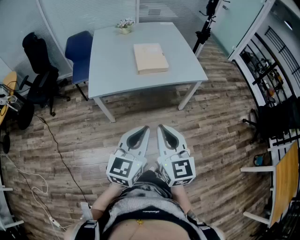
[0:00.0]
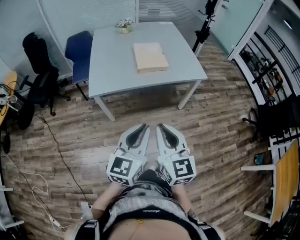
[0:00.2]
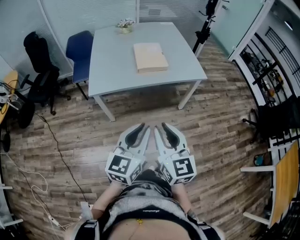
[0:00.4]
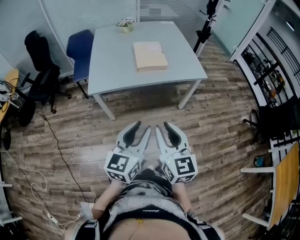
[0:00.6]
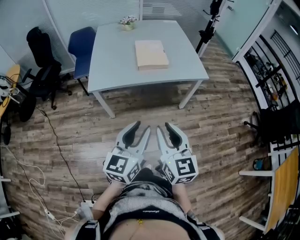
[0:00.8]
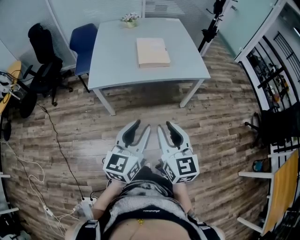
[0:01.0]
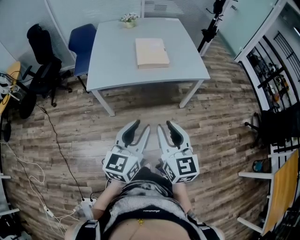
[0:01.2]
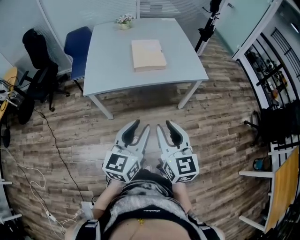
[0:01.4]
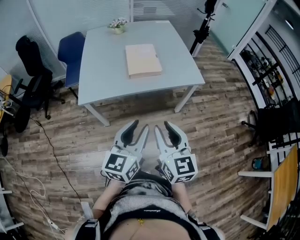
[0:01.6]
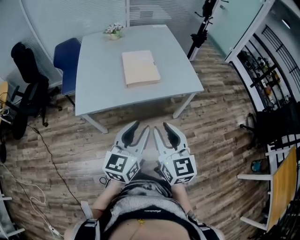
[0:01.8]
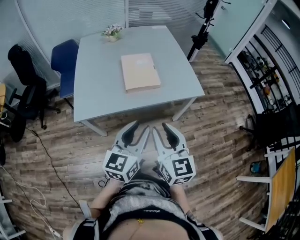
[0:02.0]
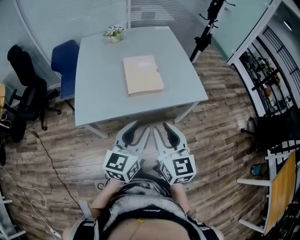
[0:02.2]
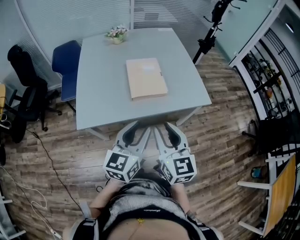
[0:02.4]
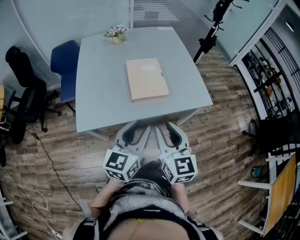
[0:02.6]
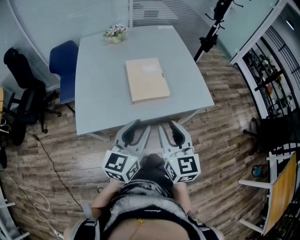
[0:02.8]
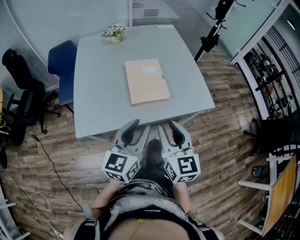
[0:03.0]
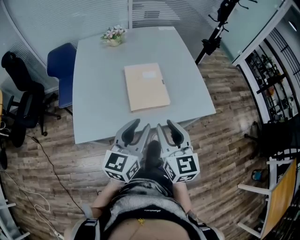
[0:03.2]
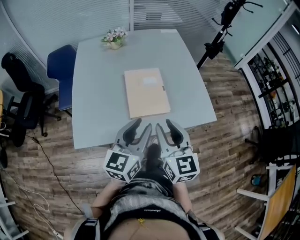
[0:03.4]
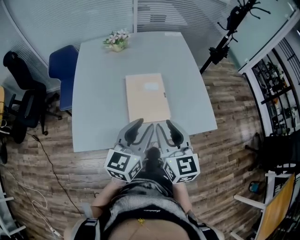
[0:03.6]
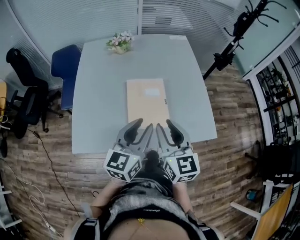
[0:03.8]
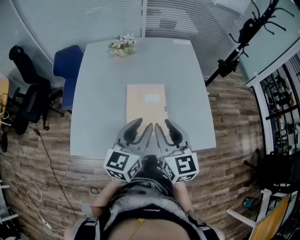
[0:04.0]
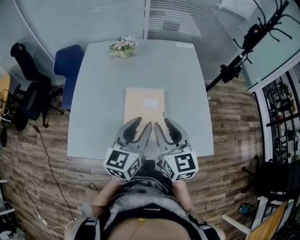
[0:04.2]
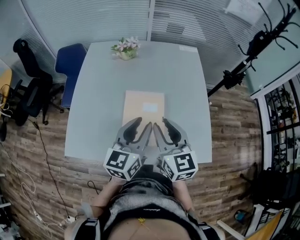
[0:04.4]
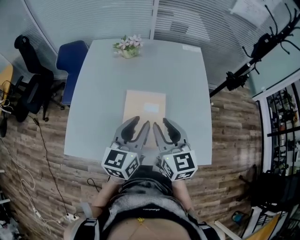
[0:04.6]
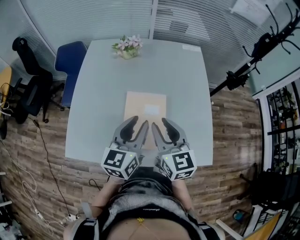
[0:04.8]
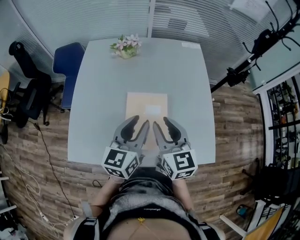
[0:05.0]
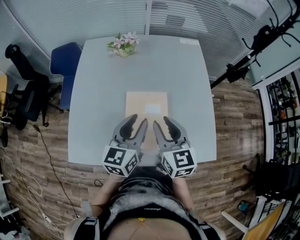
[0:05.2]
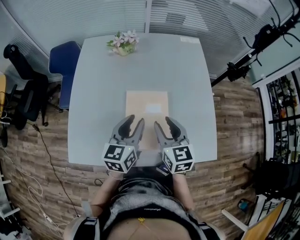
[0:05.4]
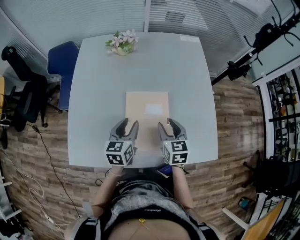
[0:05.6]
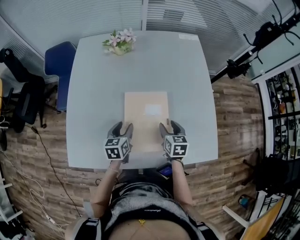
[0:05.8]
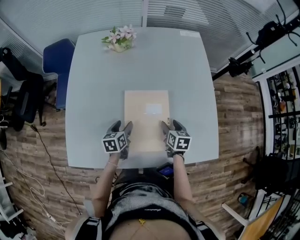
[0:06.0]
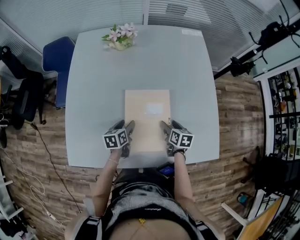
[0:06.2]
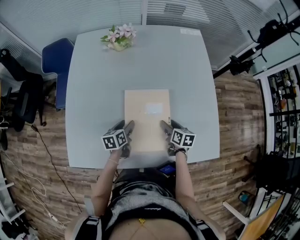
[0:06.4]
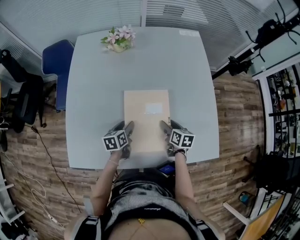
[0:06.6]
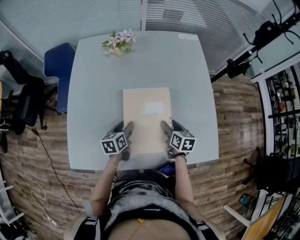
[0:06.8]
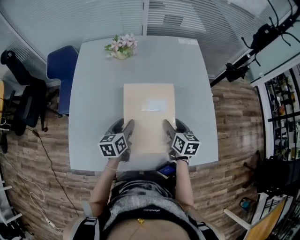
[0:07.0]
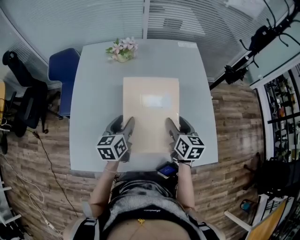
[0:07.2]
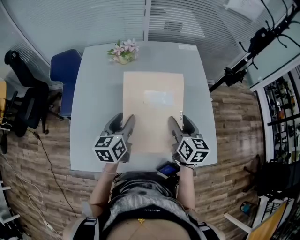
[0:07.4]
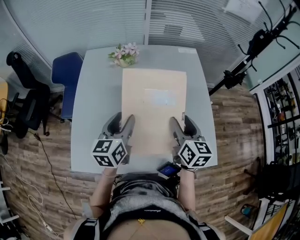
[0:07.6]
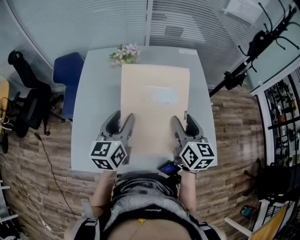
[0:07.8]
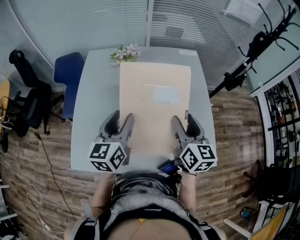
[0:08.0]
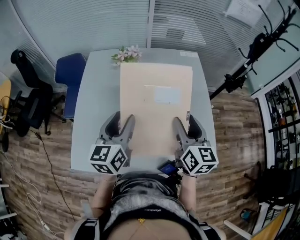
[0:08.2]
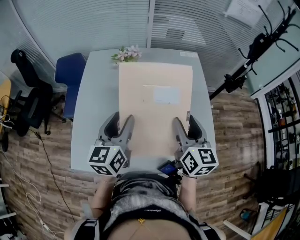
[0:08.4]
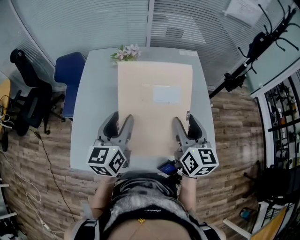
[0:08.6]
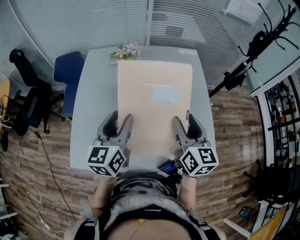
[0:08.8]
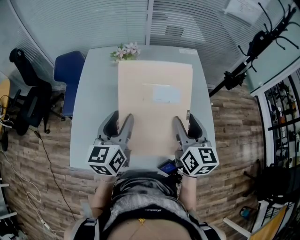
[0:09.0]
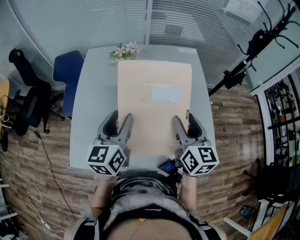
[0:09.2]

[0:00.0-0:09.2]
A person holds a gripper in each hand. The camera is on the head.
0:00.0 to 0:01.6: The right gripper heads forward and to the right, covering some 10 cm, and opens its fingers; the left gripper goes about 10 cm forward, and opens its fingers.
0:01.6 to 0:03.0: Both grippers travel together forward, approximately 25 cm.
0:03.0 to 0:04.6: Both grippers move forward, some 30 cm. The right gripper turns by approximately 20 degrees.
0:04.6 to 0:06.2: The grippers both shift downward by roughly 30 cm. The right gripper points its fingers approximately 30 degrees further downward, and opens up, while the left gripper tilts its fingers about 40 degrees downward, and opens.
0:06.2 to 0:07.6: The grippers both shift upward by about 30 cm. The left gripper changes its angle by about 30 degrees. The right gripper swivels some 30 degrees.
0:07.6 to 0:09.2: The grippers both shift upward by about 5 cm.

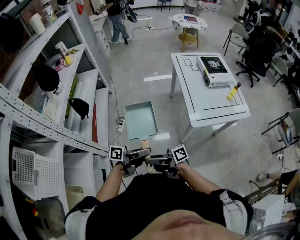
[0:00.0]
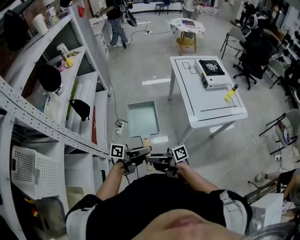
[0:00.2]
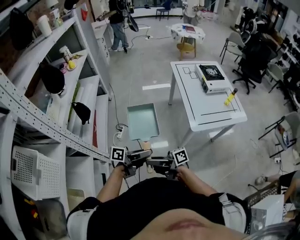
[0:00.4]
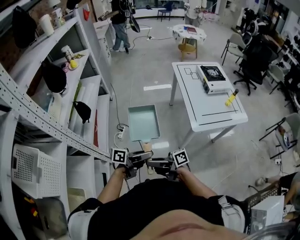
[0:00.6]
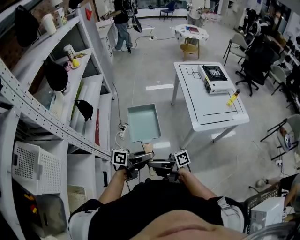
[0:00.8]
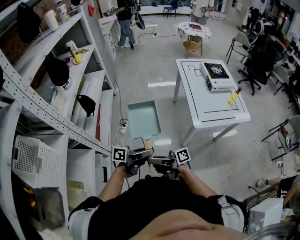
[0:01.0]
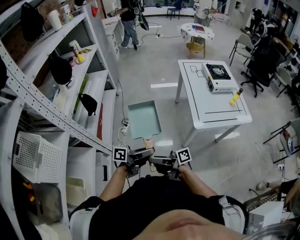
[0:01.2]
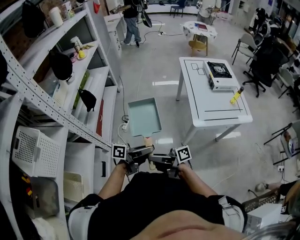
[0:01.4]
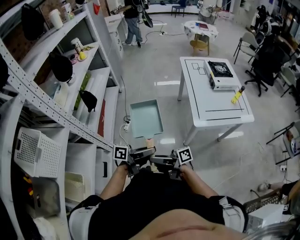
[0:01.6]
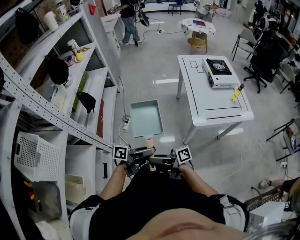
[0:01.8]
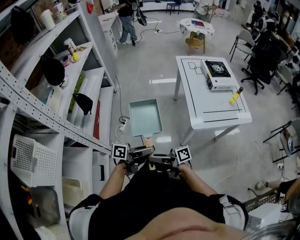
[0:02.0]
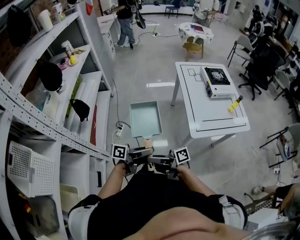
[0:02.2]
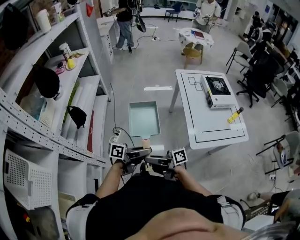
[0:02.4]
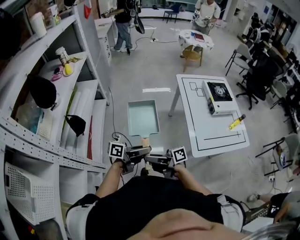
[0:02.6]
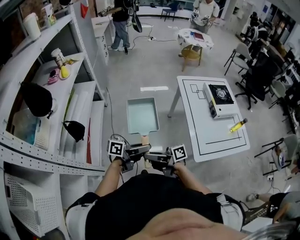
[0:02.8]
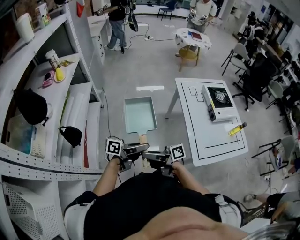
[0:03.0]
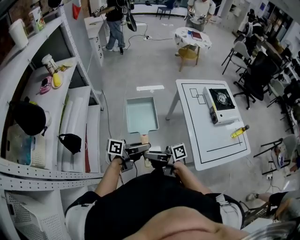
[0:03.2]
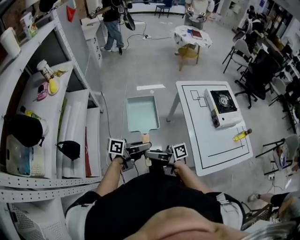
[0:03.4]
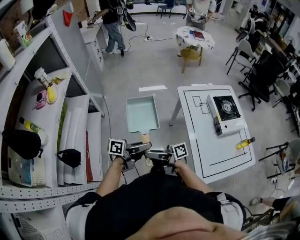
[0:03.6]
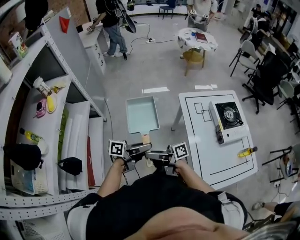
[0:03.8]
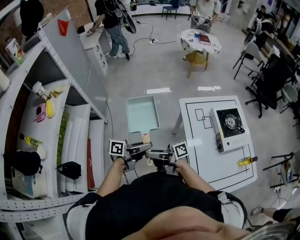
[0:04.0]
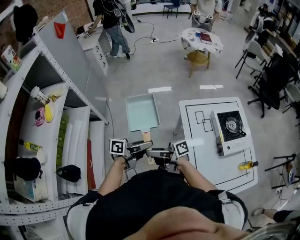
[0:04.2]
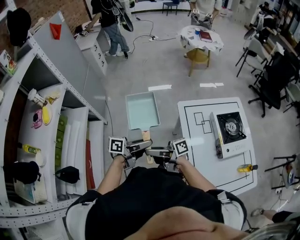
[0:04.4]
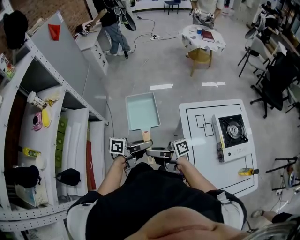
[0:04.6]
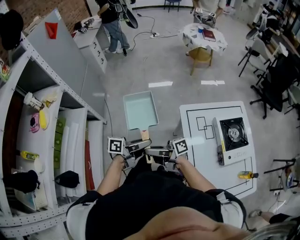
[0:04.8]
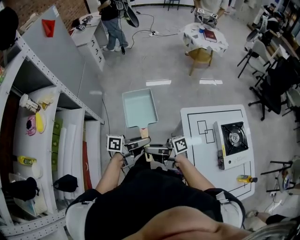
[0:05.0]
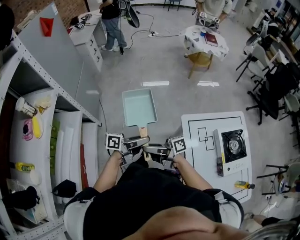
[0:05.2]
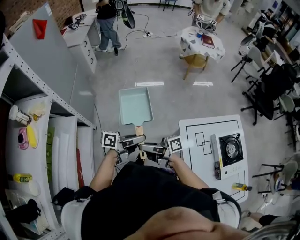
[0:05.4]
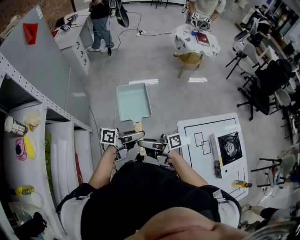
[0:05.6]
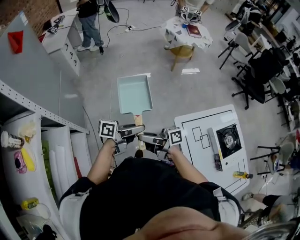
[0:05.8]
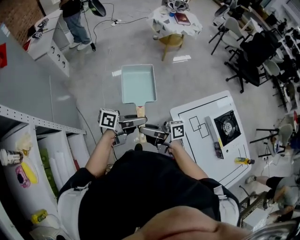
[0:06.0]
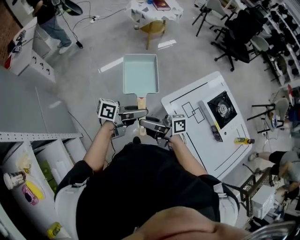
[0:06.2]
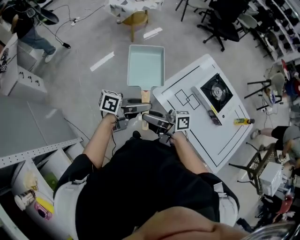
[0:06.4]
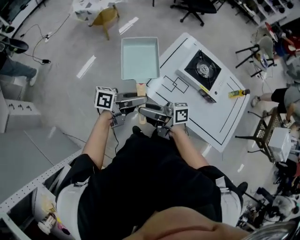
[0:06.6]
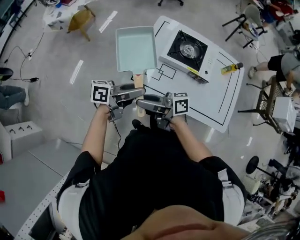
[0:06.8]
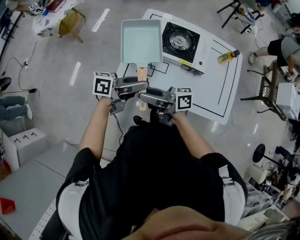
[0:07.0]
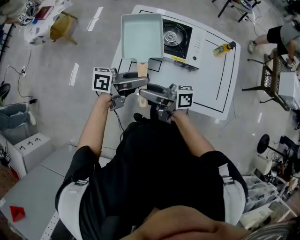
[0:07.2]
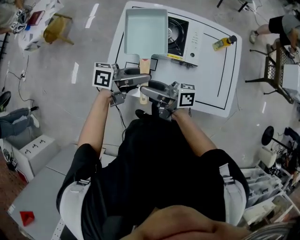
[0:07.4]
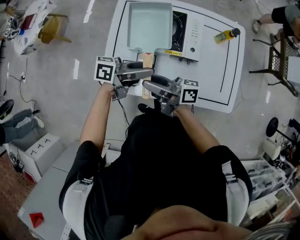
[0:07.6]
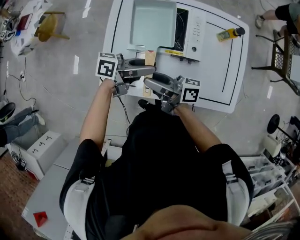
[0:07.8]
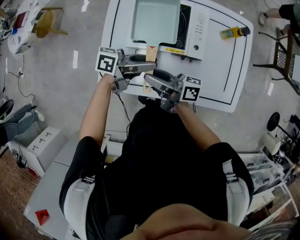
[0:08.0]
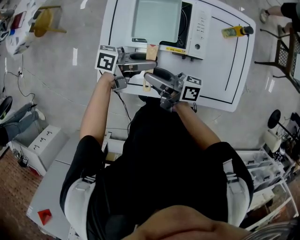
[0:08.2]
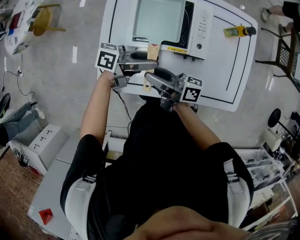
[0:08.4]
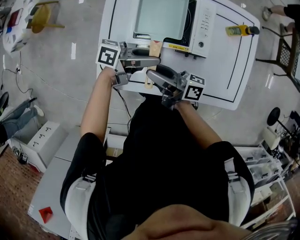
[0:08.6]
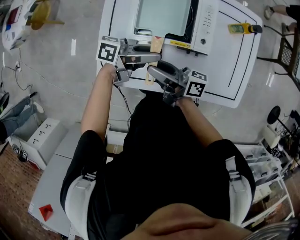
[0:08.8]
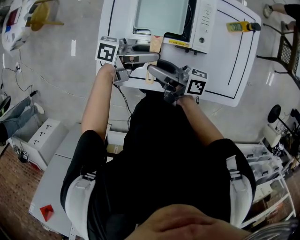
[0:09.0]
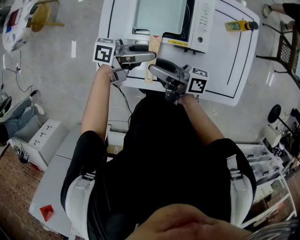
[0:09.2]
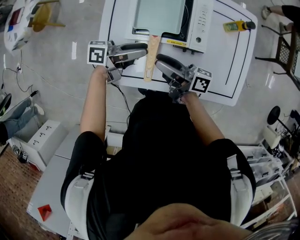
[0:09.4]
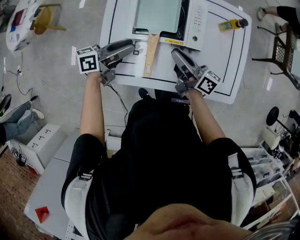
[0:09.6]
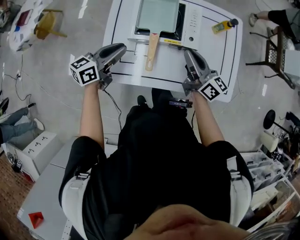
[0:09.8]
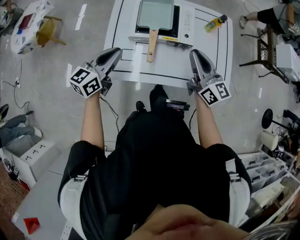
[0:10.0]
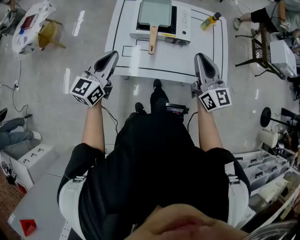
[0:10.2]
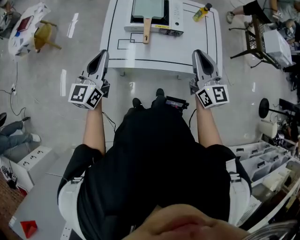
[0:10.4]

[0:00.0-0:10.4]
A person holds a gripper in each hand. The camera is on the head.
0:00.0 to 0:01.4: The left gripper shifts by about 5 cm. The right gripper ends up roughly 5 cm from where it was.
0:01.4 to 0:03.0: The right gripper ends up about 35 cm from where it was, while the left gripper ends up some 35 cm from where it was.
0:03.0 to 0:04.4: The right gripper shifts by about 35 cm, while the left gripper shifts by about 35 cm.
0:04.4 to 0:06.0: The left gripper moves roughly 30 cm, and turns by some 20 degrees. The right gripper changes place by approximately 30 cm, and rotates approximately 20 degrees.
0:06.0 to 0:07.4: Both grippers are carried roughly 40 cm. The right gripper changes its angle by some 60 degrees; the left gripper changes its angle by some 60 degrees.
0:07.4 to 0:09.0: Both grippers move downward, some 10 cm.
0:09.0 to 0:10.4: The left gripper shifts by roughly 30 cm, rotates about 80 degrees, and closes. Meanwhile the right gripper ends up approximately 30 cm from where it was, rotates around the line of its fingers by some 70 degrees, counterclockwise from behind, and closes its fingers.

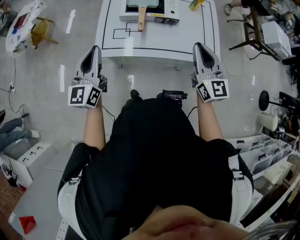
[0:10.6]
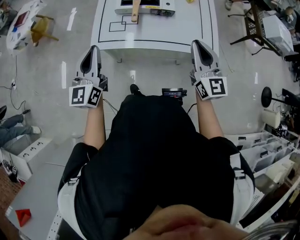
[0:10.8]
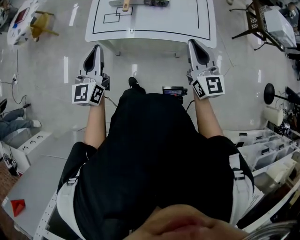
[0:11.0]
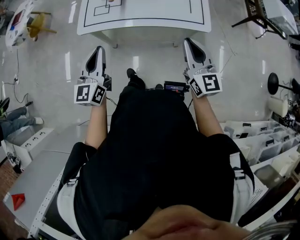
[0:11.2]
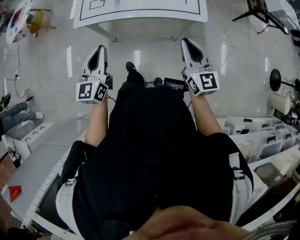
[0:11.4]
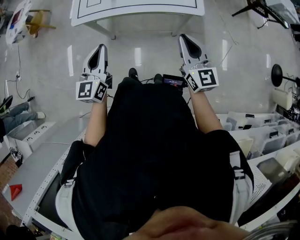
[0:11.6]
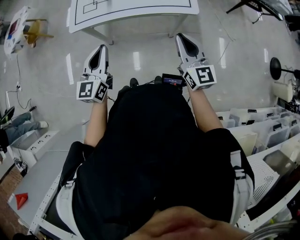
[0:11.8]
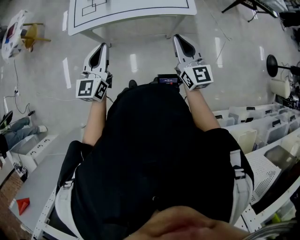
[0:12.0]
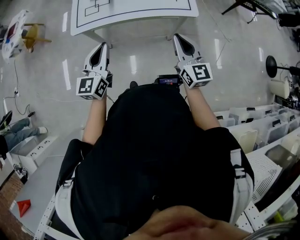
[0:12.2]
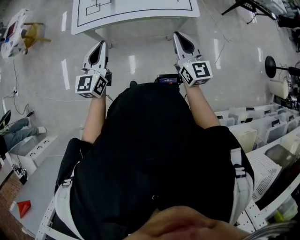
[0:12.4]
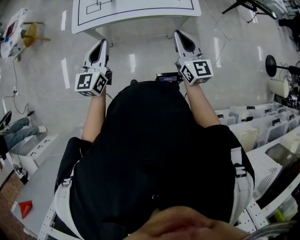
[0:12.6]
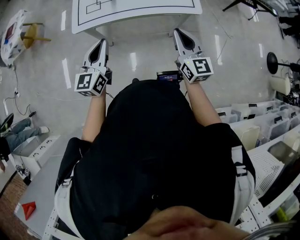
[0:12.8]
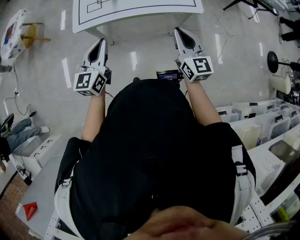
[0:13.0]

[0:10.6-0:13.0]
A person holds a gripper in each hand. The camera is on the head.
0:10.6 to 0:11.8: The left gripper shifts roughly 30 cm to the right and backward. Meanwhile the right gripper moves backward and to the right, approximately 25 cm.
0:11.8 to 0:13.0: Both grippers travel together to the left, some 5 cm.

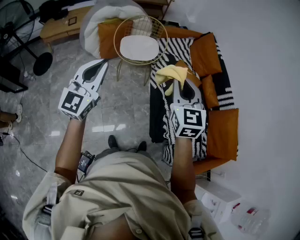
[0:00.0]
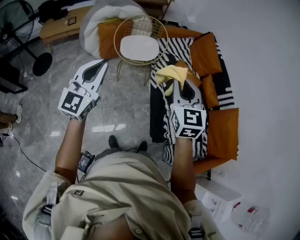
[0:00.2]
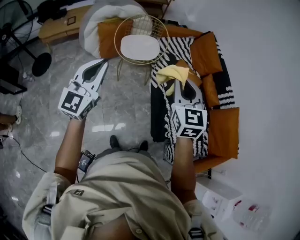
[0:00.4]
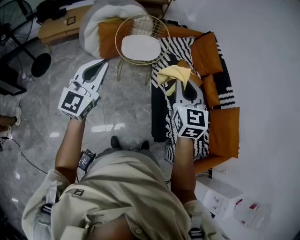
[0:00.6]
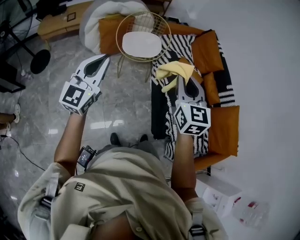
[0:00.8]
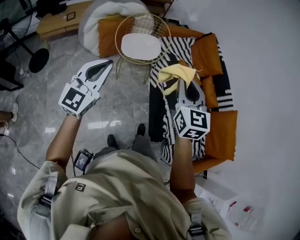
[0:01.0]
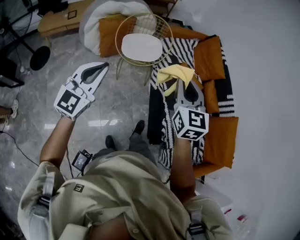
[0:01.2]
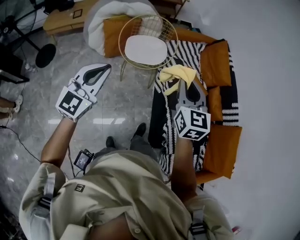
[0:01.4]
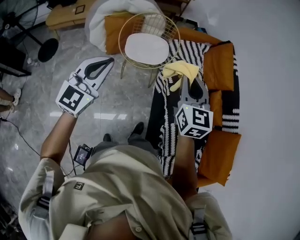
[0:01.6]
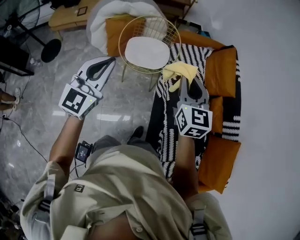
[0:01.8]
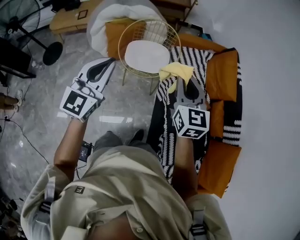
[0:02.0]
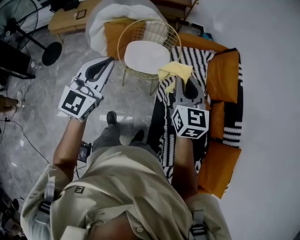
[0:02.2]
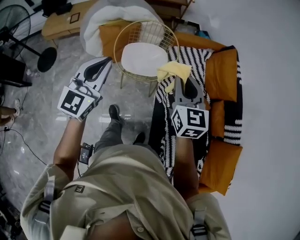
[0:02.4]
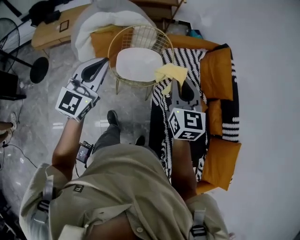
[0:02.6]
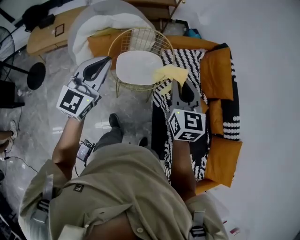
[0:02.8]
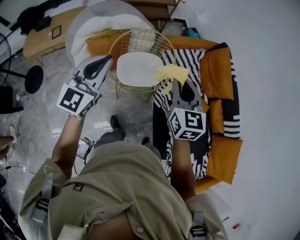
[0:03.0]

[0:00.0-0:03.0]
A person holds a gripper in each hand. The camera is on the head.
0:00.0 to 0:01.6: The grippers both shift forward by approximately 20 cm.
0:01.6 to 0:03.0: Both grippers travel together forward and to the left, roughly 30 cm.
